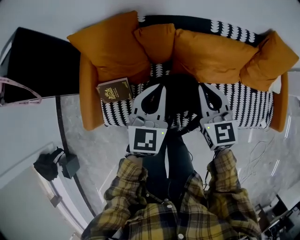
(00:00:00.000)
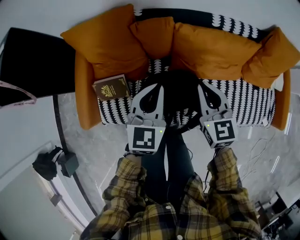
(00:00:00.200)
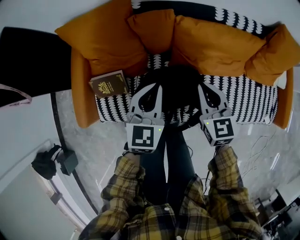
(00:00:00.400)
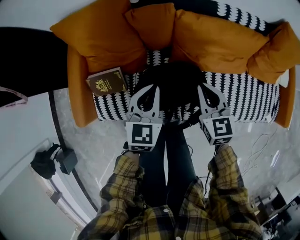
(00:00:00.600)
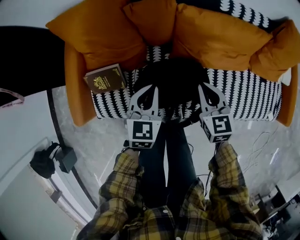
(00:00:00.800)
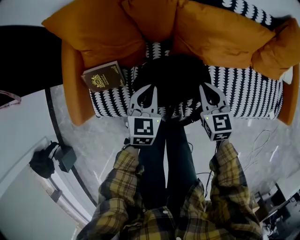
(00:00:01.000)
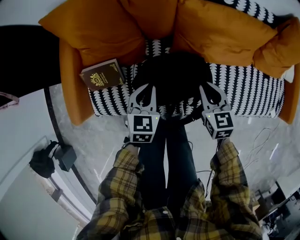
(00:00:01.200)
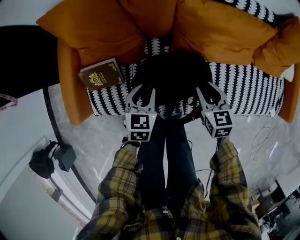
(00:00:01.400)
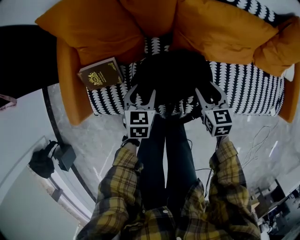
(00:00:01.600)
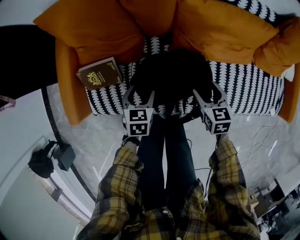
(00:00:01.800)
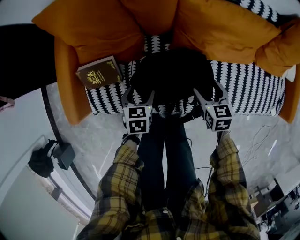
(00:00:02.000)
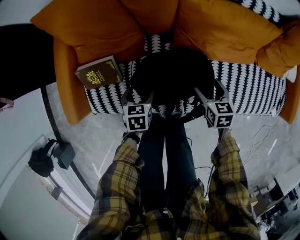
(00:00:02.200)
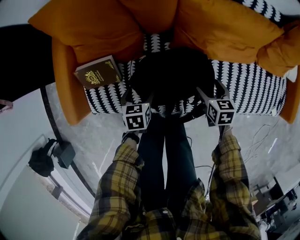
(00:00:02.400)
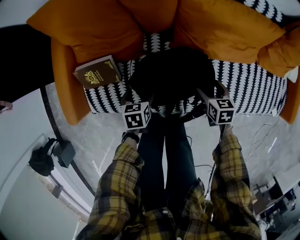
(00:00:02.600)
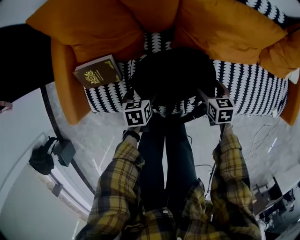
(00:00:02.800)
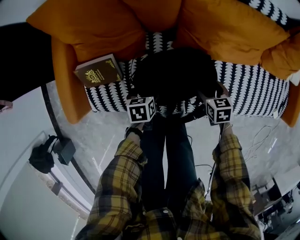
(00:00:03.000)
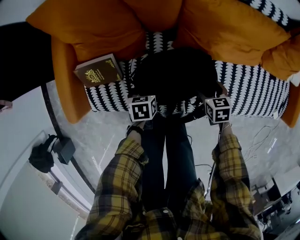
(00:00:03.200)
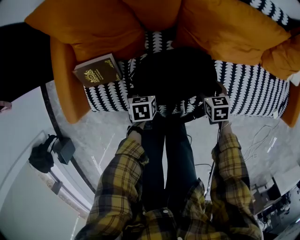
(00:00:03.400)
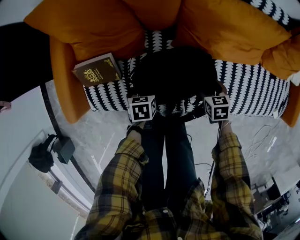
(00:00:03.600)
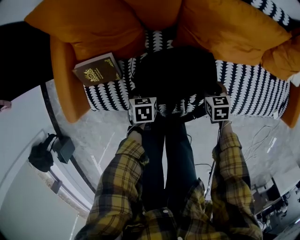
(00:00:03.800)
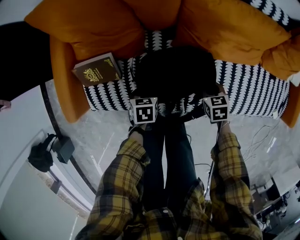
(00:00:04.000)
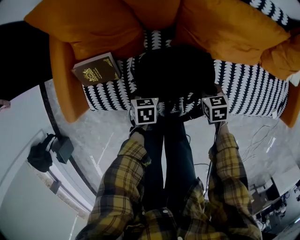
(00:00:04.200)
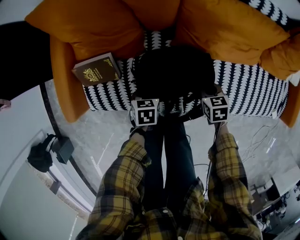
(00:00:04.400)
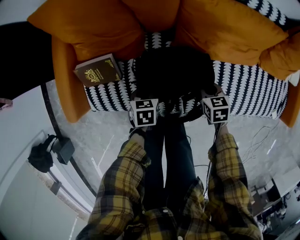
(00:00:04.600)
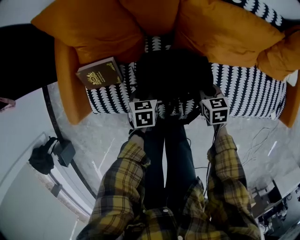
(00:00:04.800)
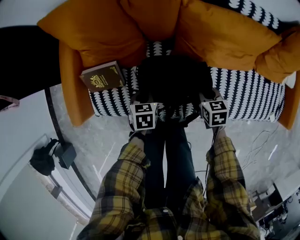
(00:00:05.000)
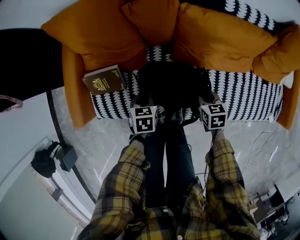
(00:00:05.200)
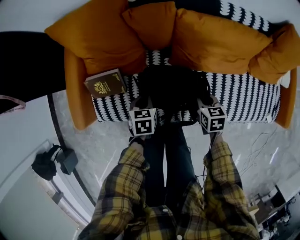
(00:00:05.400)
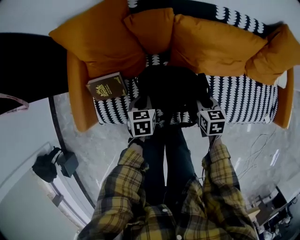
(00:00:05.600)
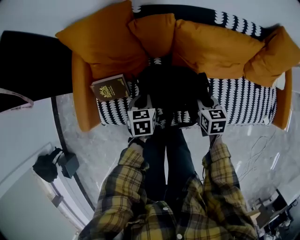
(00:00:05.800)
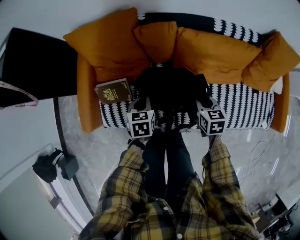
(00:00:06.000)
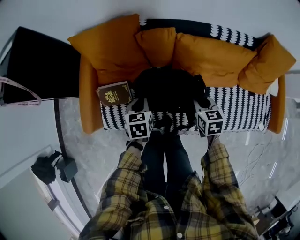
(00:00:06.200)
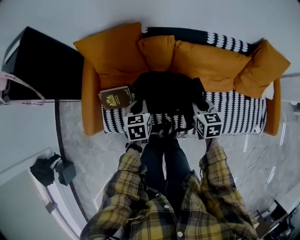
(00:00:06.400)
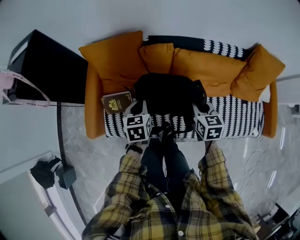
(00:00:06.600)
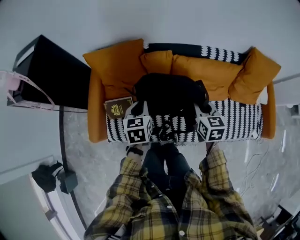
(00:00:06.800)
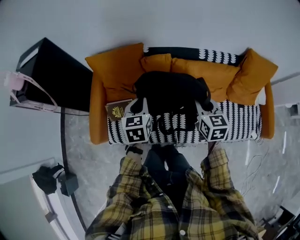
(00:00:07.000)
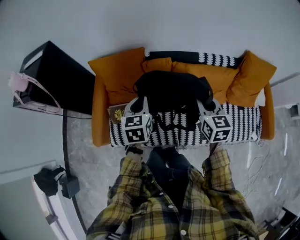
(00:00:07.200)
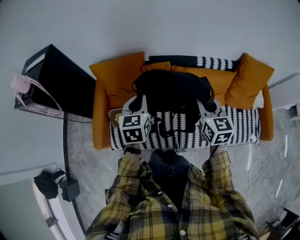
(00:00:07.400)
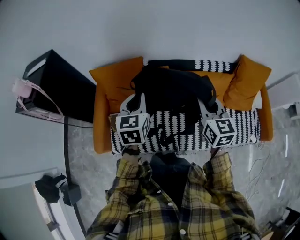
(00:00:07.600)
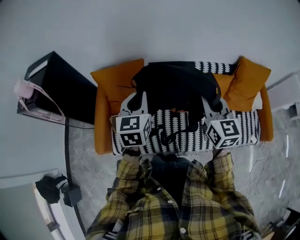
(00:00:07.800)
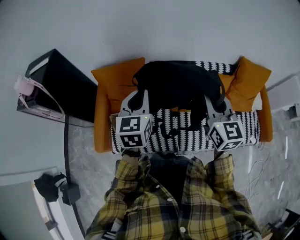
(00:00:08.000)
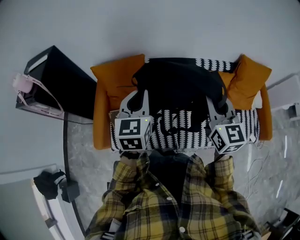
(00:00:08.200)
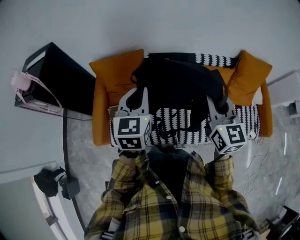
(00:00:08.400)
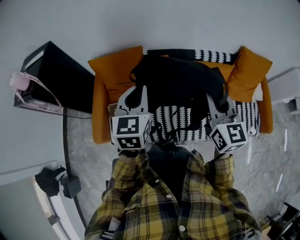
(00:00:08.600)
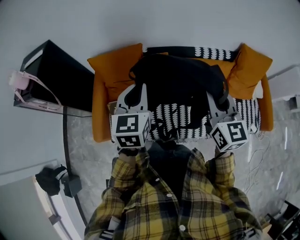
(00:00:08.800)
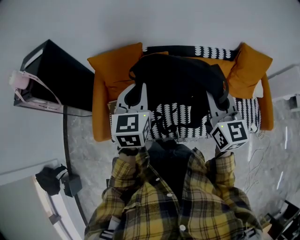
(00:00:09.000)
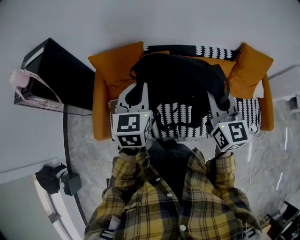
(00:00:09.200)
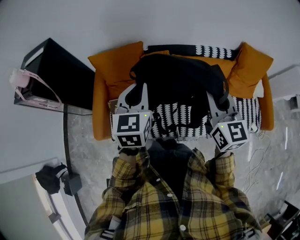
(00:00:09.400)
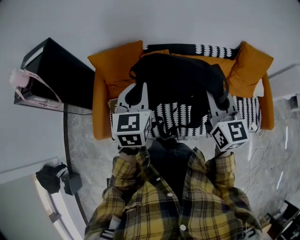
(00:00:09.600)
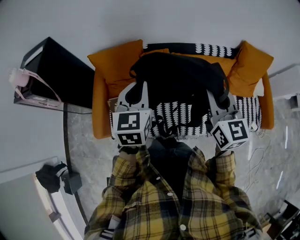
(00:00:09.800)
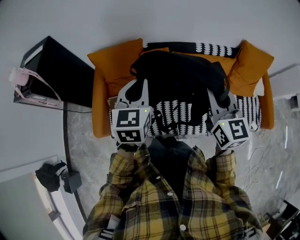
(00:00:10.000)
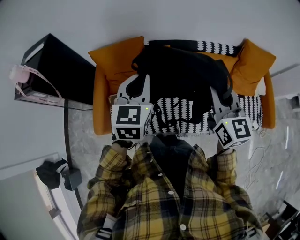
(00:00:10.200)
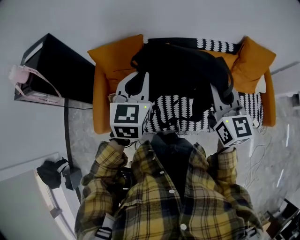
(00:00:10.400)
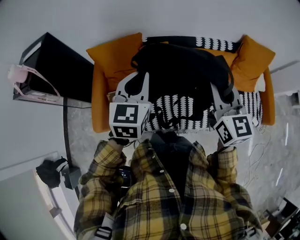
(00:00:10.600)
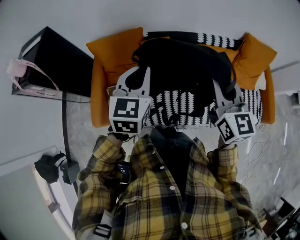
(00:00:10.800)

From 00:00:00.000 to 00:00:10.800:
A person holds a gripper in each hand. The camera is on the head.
From 00:00:00.000 to 00:00:01.600: The grippers both shift downward by some 25 cm. The right gripper rotates about 20 degrees, and opens, while the left gripper rotates approximately 30 degrees, and opens its fingers.
From 00:00:01.600 to 00:00:03.000: The grippers both shift downward by roughly 10 cm. The left gripper turns by approximately 30 degrees, and opens up. Meanwhile the right gripper opens up.
From 00:00:03.000 to 00:00:04.600: The left gripper closes its fingers. The right gripper closes.
From 00:00:04.600 to 00:00:06.200: Both grippers travel together upward, about 20 cm.
From 00:00:06.200 to 00:00:07.800: The two grippers go some 35 cm upward. The left gripper angles its fingers upward, by some 30 degrees. Meanwhile the right gripper tips its fingers upward by approximately 30 degrees.
From 00:00:07.800 to 00:00:09.200: The right gripper changes place by approximately 5 cm.
From 00:00:09.200 to 00:00:10.800: The grippers make only small movements.

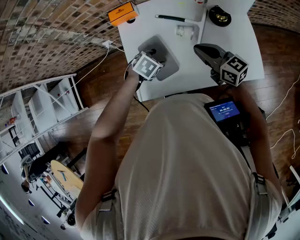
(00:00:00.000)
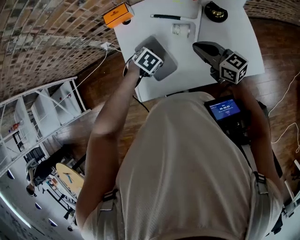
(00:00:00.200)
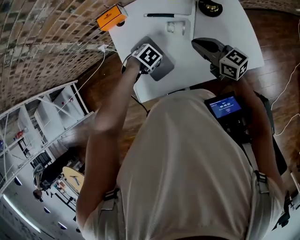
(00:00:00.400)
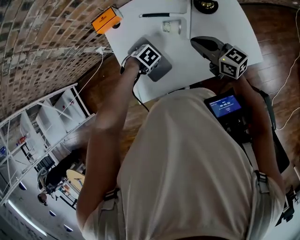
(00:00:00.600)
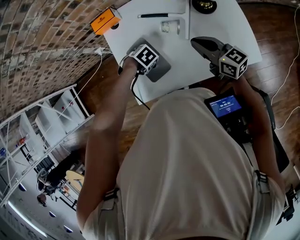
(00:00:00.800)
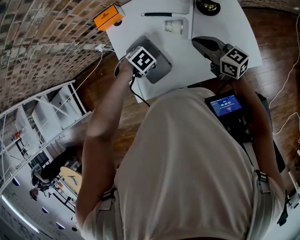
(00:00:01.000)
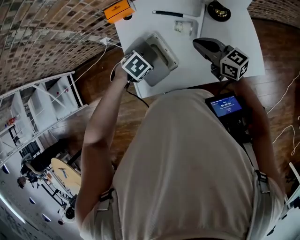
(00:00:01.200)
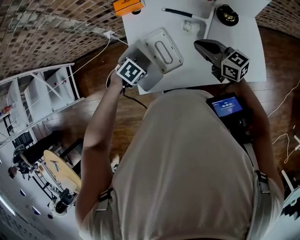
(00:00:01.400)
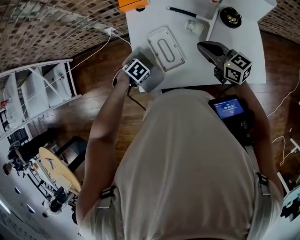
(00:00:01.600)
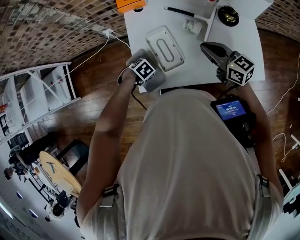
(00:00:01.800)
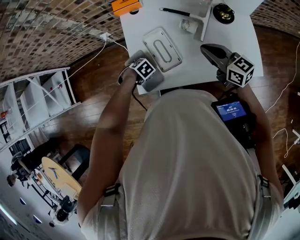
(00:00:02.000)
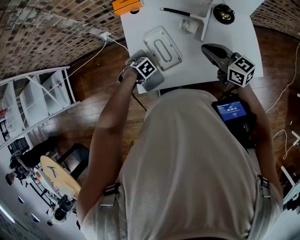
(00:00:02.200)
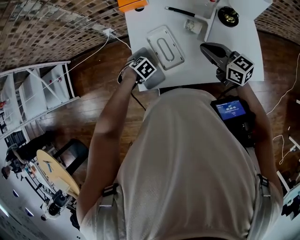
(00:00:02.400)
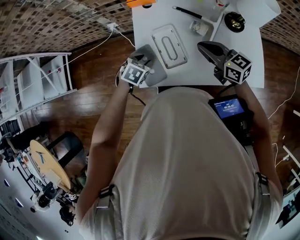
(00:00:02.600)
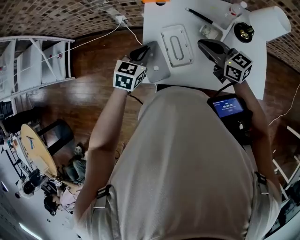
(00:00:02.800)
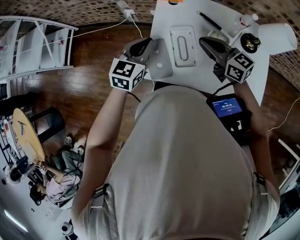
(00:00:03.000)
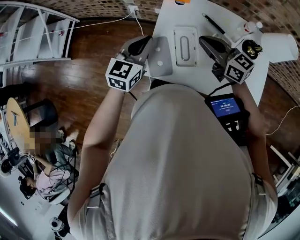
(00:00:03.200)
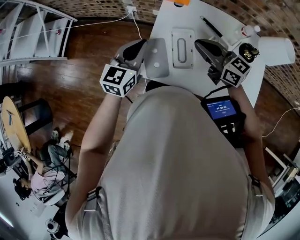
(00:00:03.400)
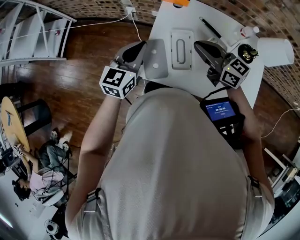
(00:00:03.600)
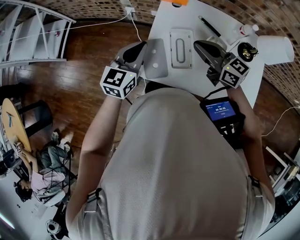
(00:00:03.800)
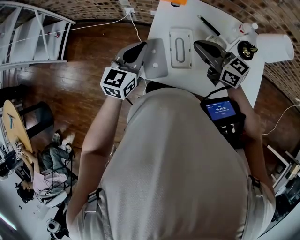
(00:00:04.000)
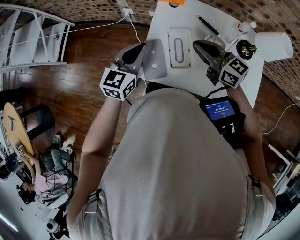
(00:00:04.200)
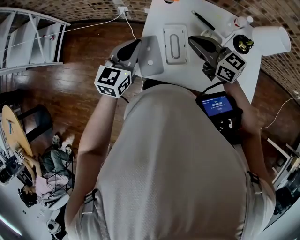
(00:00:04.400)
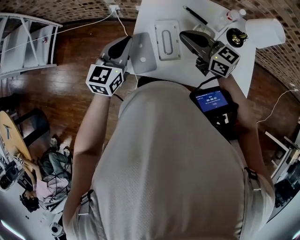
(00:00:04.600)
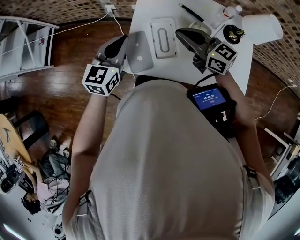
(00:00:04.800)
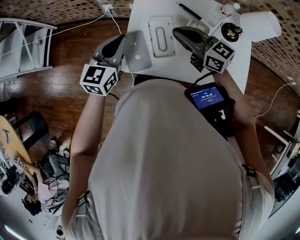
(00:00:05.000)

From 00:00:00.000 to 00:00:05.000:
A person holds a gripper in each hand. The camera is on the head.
From 00:00:00.000 to 00:00:01.600: The left gripper swings up and down, approximately 10 cm each way, with 2 reversals.
From 00:00:01.600 to 00:00:03.400: The left gripper heads upward, covering some 25 cm, angles its fingers upward, by roughly 70 degrees, and closes its fingers; the right gripper moves approximately 15 cm, and changes its angle by roughly 20 degrees.
From 00:00:03.400 to 00:00:05.000: The grippers move only a little.

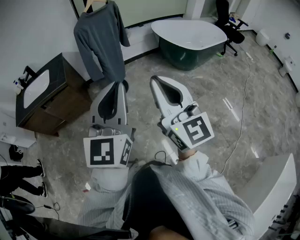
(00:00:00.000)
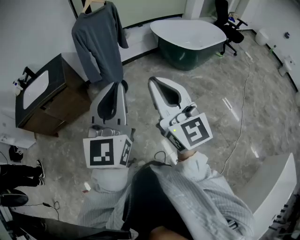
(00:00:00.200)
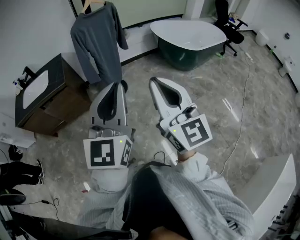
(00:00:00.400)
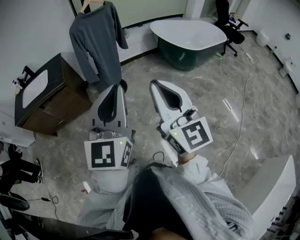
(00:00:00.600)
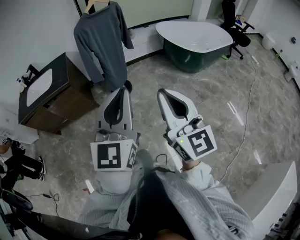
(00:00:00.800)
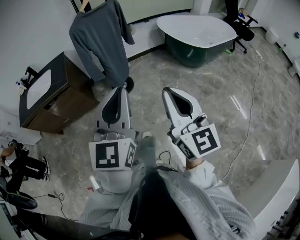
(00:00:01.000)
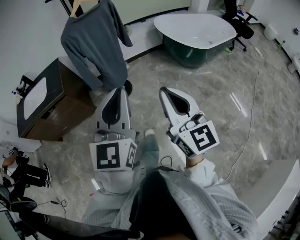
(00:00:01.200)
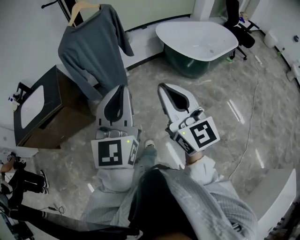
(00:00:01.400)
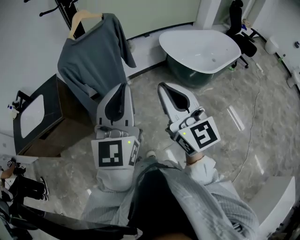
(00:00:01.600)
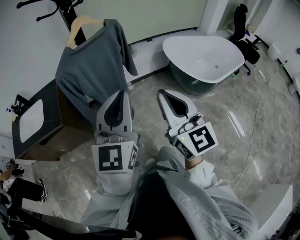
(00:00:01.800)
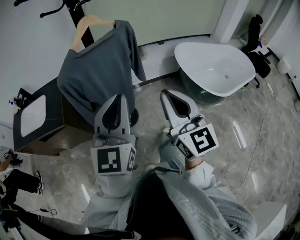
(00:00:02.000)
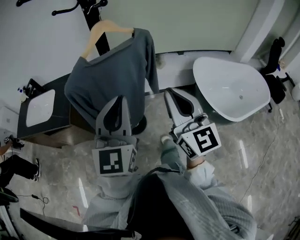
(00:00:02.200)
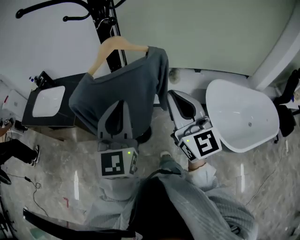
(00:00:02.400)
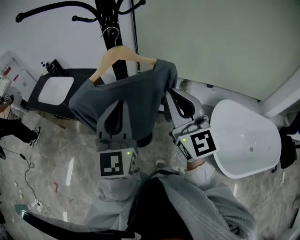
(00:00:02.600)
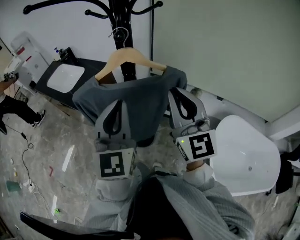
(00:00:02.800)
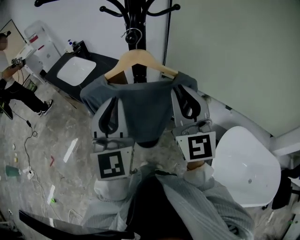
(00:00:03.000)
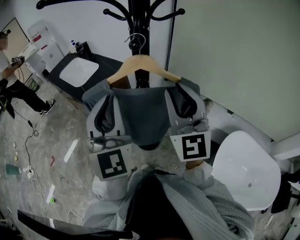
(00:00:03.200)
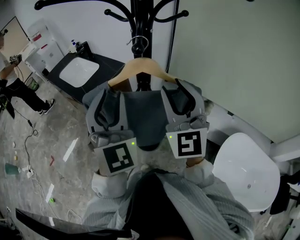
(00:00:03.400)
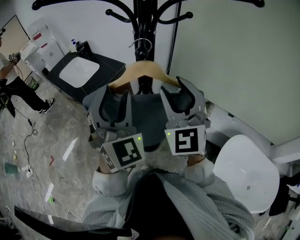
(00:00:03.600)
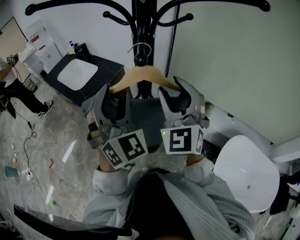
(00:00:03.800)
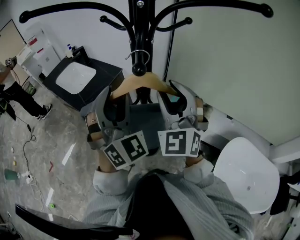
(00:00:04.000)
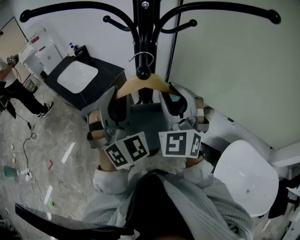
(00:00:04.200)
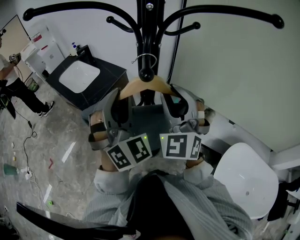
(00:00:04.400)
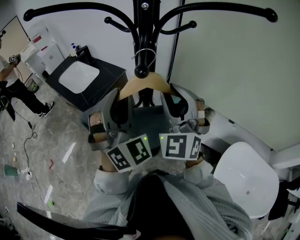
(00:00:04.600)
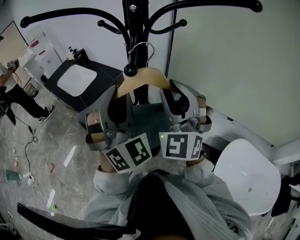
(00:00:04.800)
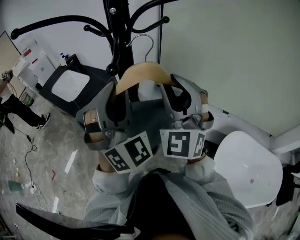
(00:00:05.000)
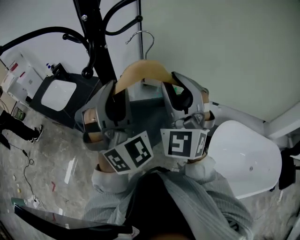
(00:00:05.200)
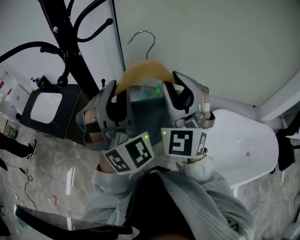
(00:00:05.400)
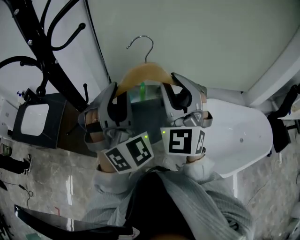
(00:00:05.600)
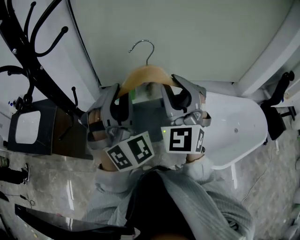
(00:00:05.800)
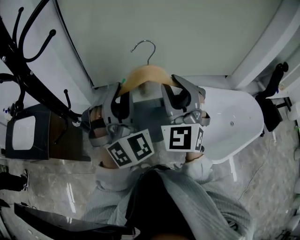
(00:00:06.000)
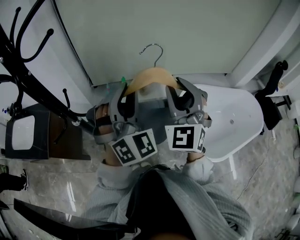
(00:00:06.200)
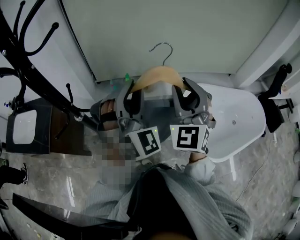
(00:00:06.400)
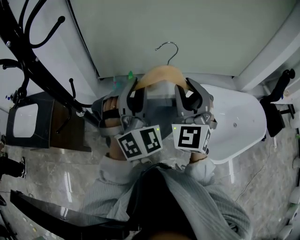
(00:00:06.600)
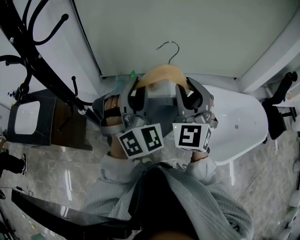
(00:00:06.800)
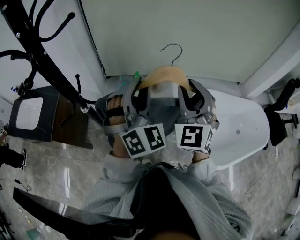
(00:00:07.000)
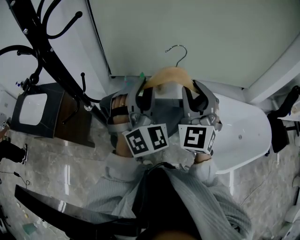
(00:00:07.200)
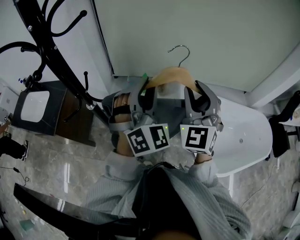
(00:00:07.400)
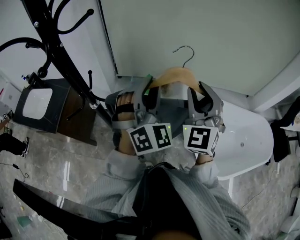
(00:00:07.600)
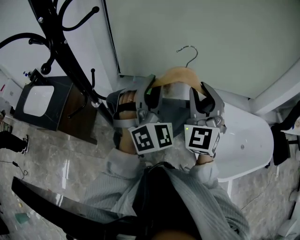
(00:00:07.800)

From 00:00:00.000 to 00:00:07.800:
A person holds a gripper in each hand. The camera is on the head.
From 00:00:00.000 to 00:00:01.600: The two grippers go about 30 cm forward.
From 00:00:01.600 to 00:00:03.200: The left gripper moves approximately 35 cm, and changes its angle by some 70 degrees, while the right gripper moves some 50 cm, and changes its angle by some 50 degrees.
From 00:00:03.200 to 00:00:04.600: Both grippers move forward, approximately 10 cm. The left gripper swivels some 40 degrees, and opens its fingers; the right gripper changes its angle by roughly 30 degrees.
From 00:00:04.600 to 00:00:06.200: The right gripper shifts by approximately 30 cm, and turns by approximately 40 degrees, while the left gripper moves some 5 cm upward and comes back, and changes its angle by about 40 degrees.
From 00:00:06.200 to 00:00:07.800: The grippers make only small movements.
